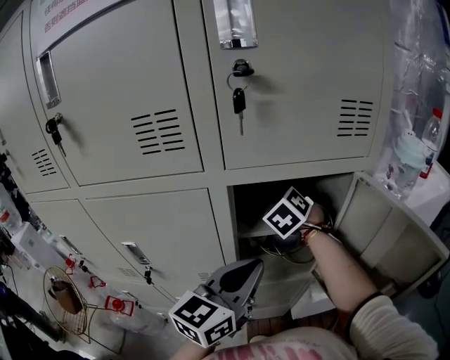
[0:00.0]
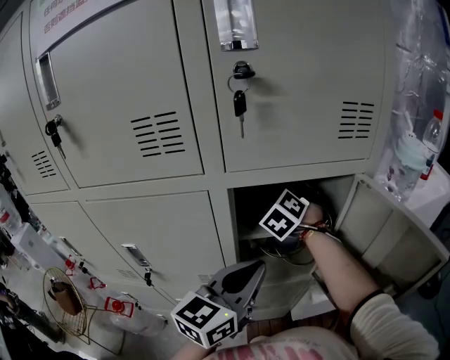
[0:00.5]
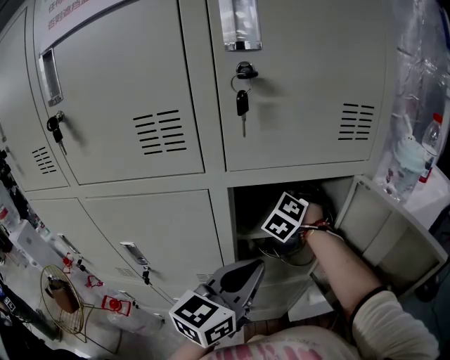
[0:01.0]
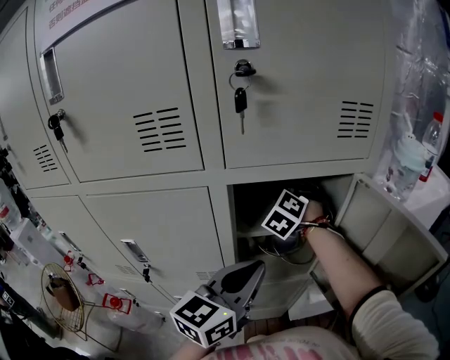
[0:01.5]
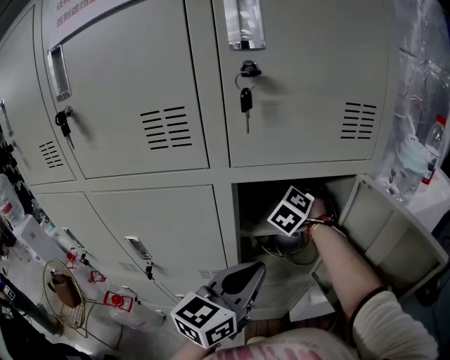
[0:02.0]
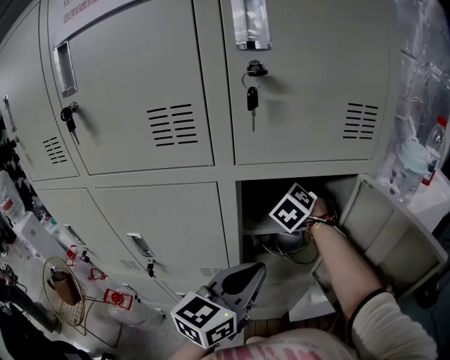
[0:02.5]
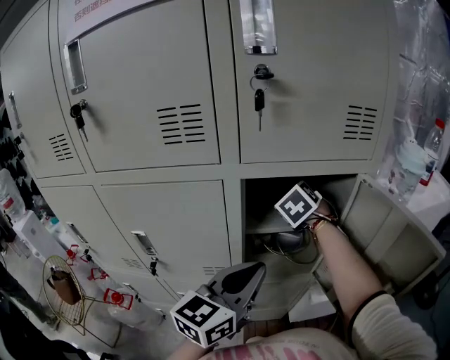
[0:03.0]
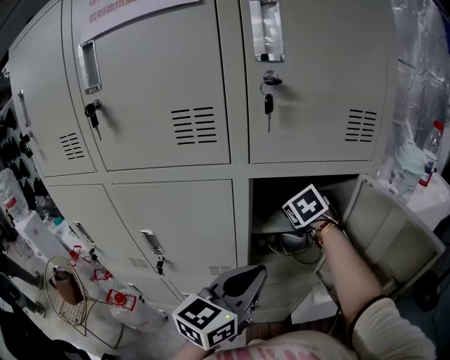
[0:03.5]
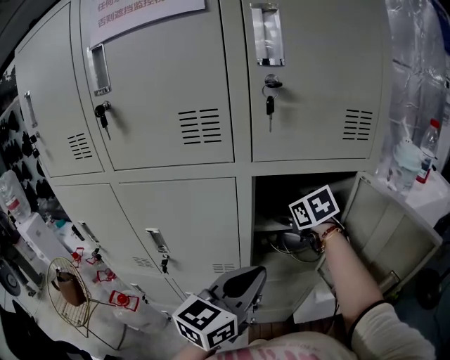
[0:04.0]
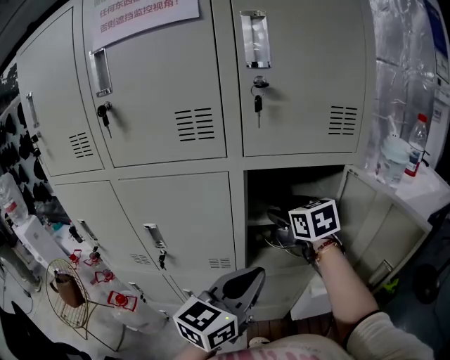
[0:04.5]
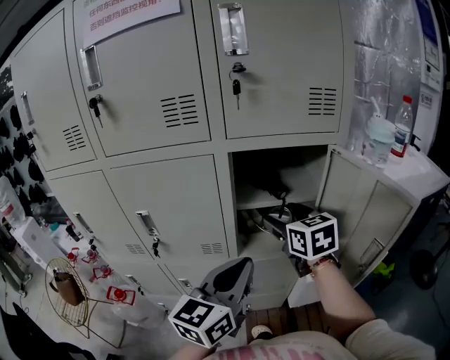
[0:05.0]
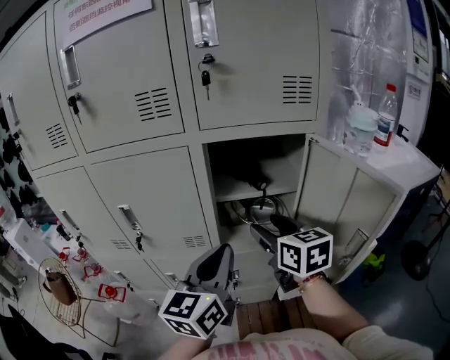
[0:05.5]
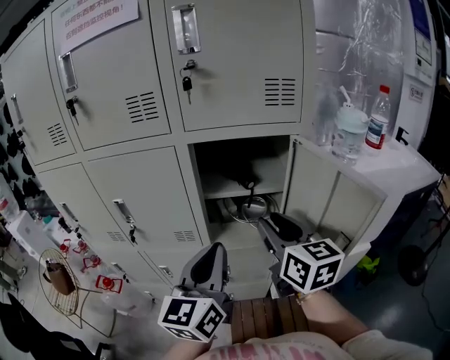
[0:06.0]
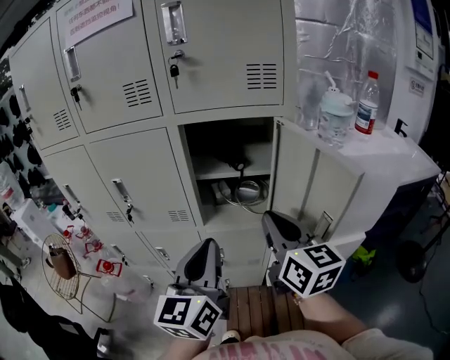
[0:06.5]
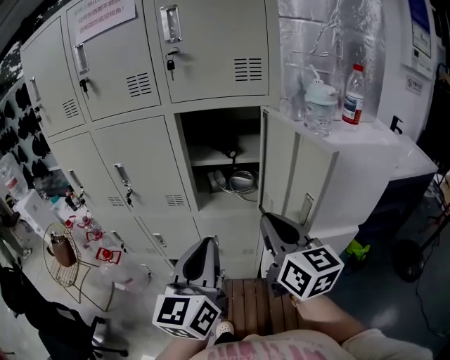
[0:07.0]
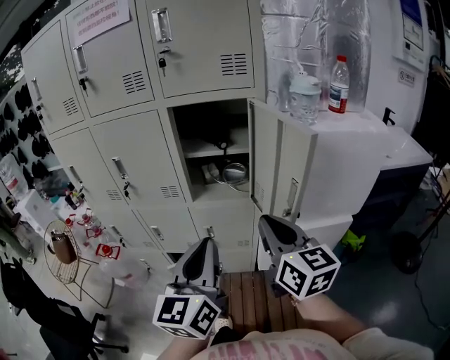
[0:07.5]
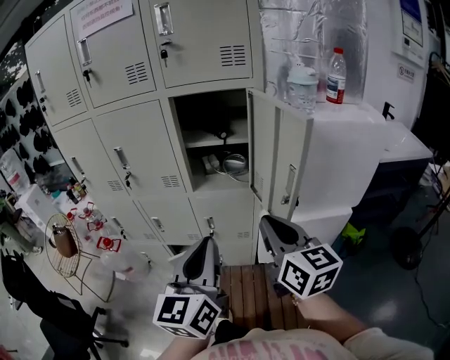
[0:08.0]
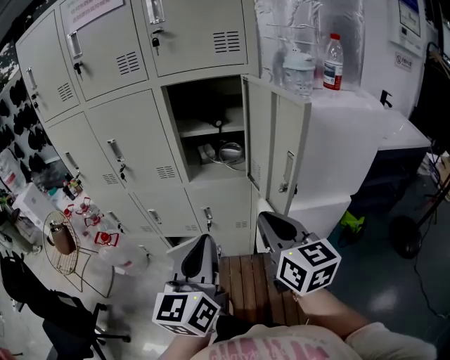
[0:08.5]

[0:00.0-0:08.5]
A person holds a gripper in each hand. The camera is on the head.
0:00.0 to 0:02.0: The grippers make only small movements.
0:02.0 to 0:04.0: The right gripper moves backward, some 10 cm, rotates around the line of its fingers by roughly 40 degrees, clockwise from behind, and opens. Meanwhile the left gripper is displaced backward by roughly 5 cm.
0:04.0 to 0:06.5: The right gripper goes approximately 30 cm backward, angles its fingers upward, by roughly 40 degrees, and closes; the left gripper moves backward and to the right, about 15 cm, and turns by some 30 degrees.
0:06.5 to 0:08.5: The left gripper travels backward by roughly 15 cm; the right gripper moves backward and downward, roughly 15 cm.

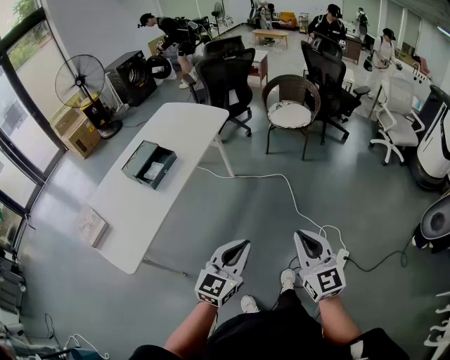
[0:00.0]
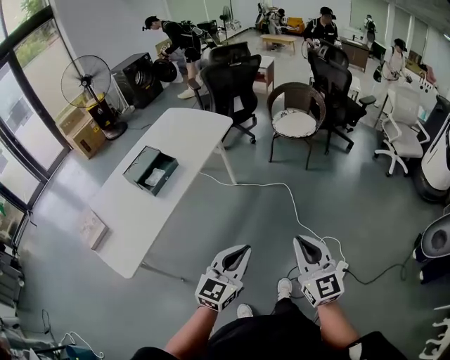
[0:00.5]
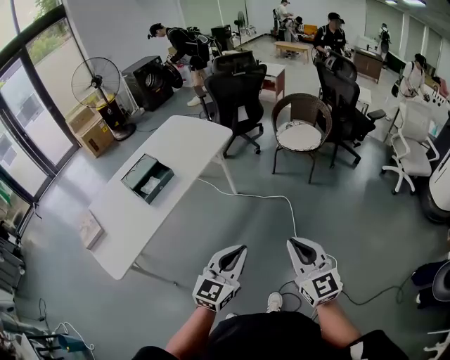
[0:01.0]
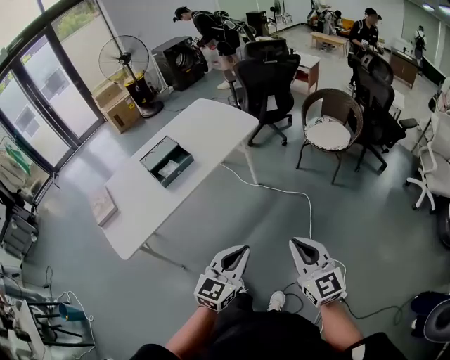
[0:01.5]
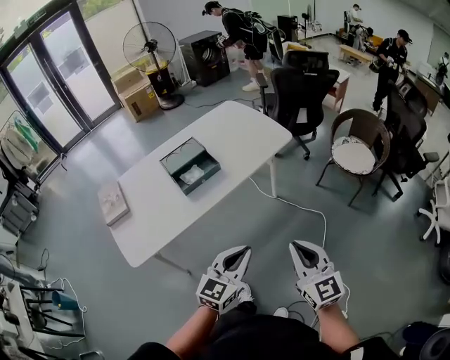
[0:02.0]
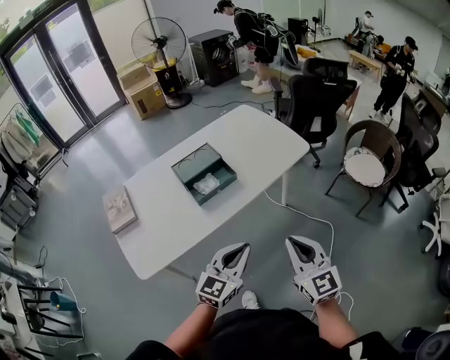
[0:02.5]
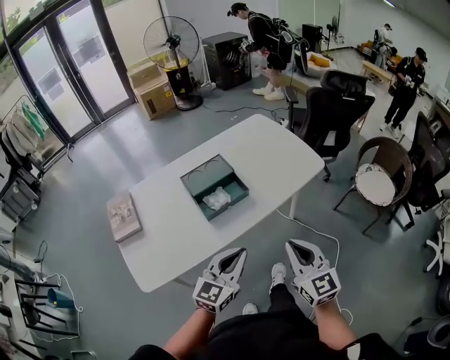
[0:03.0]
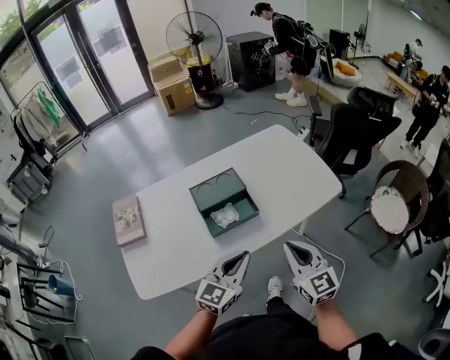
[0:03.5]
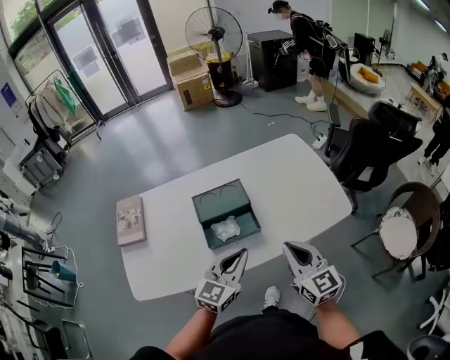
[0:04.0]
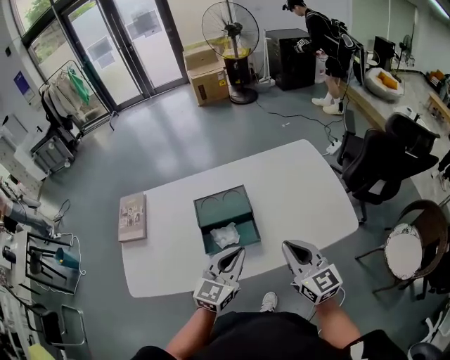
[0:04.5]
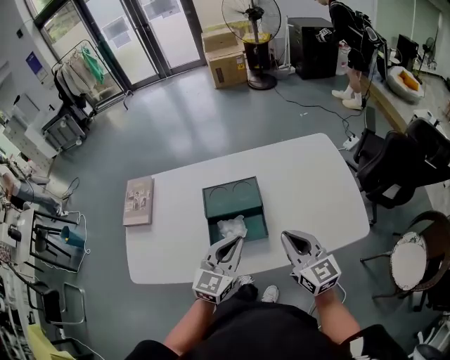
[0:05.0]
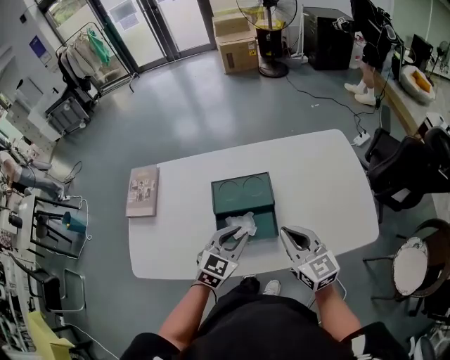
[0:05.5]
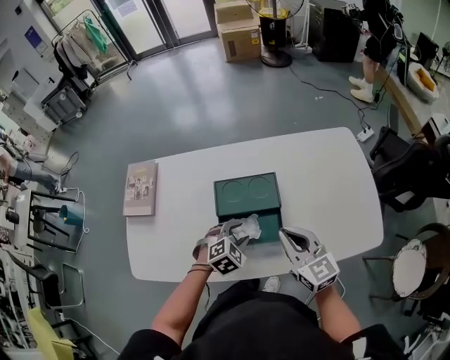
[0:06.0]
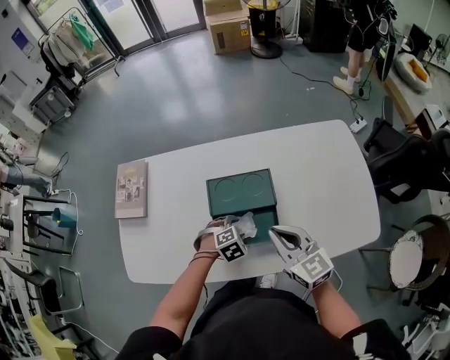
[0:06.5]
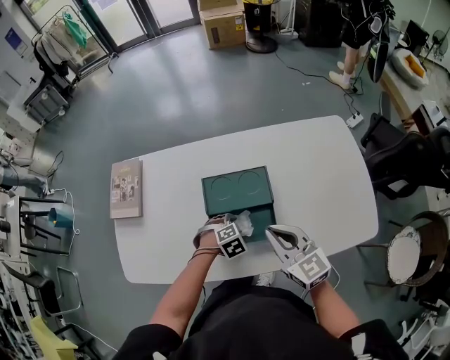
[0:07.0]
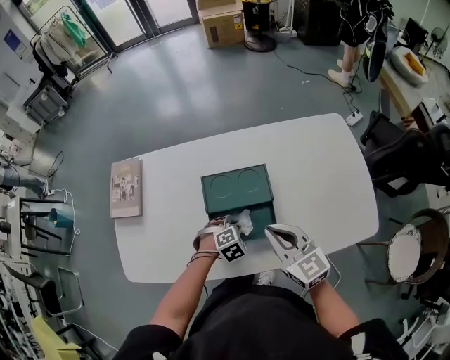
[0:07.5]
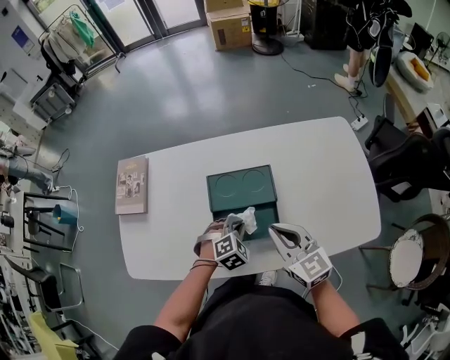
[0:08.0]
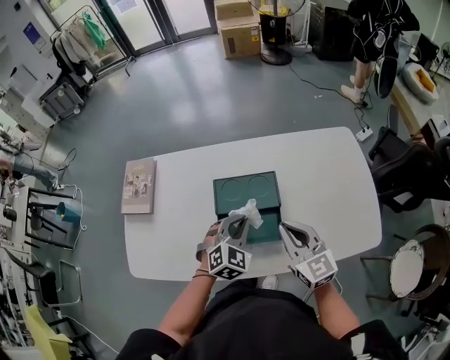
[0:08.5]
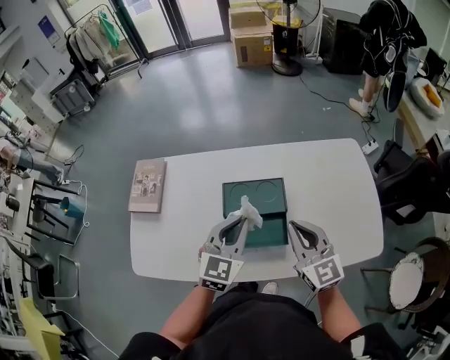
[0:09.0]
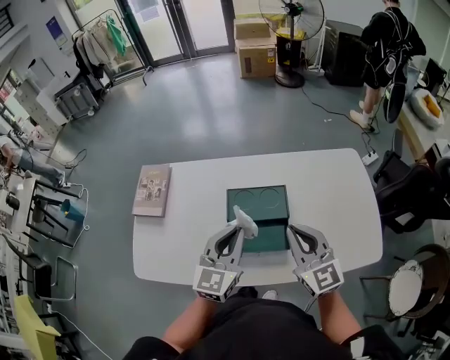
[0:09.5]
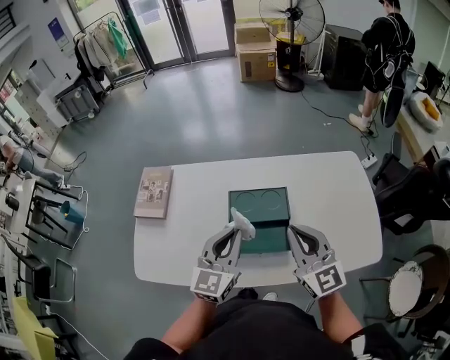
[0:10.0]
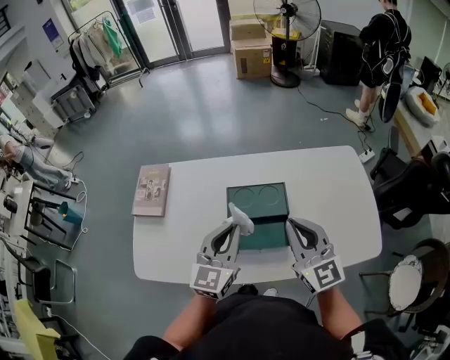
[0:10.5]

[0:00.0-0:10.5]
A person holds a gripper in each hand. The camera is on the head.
0:00.0 to 0:02.0: The right gripper shifts by about 25 cm, and turns by about 30 degrees, while the left gripper ends up about 20 cm from where it was, and swivels some 20 degrees.
0:02.0 to 0:04.0: Both grippers move forward, approximately 40 cm. The left gripper turns by about 20 degrees; the right gripper rotates roughly 30 degrees.
0:04.0 to 0:06.5: The right gripper goes some 20 cm forward, to the left and downward, and swivels some 20 degrees, while the left gripper travels downward and forward by approximately 30 cm, tips its fingers downward by approximately 60 degrees, and opens.
0:06.5 to 0:08.5: The left gripper heads upward, covering roughly 15 cm, tips its fingers upward by roughly 30 degrees, and closes up.
0:08.5 to 0:10.5: The left gripper travels upward and to the left by approximately 15 cm, and points its fingers some 30 degrees further upward. Meanwhile the right gripper heads upward, covering about 10 cm.

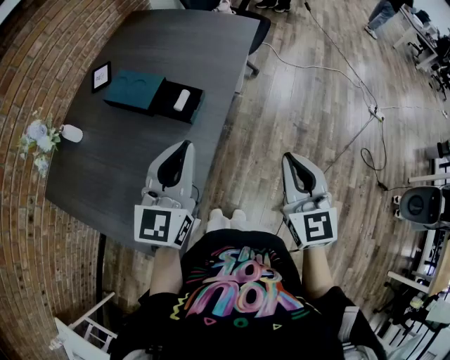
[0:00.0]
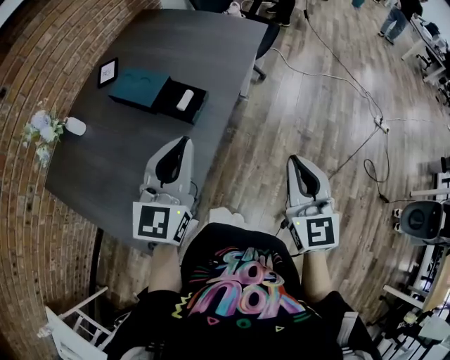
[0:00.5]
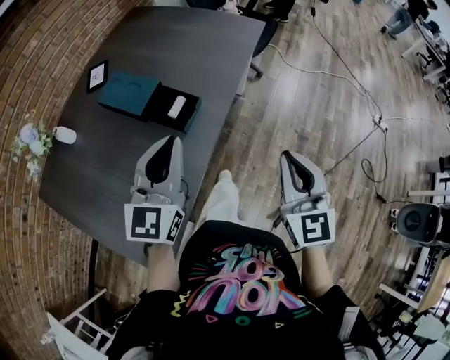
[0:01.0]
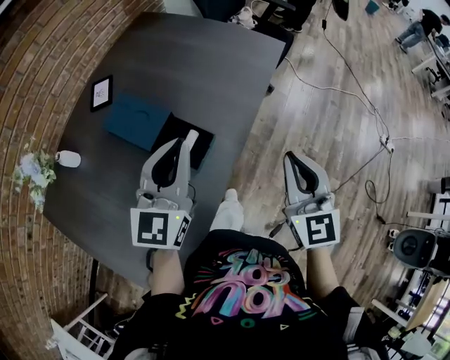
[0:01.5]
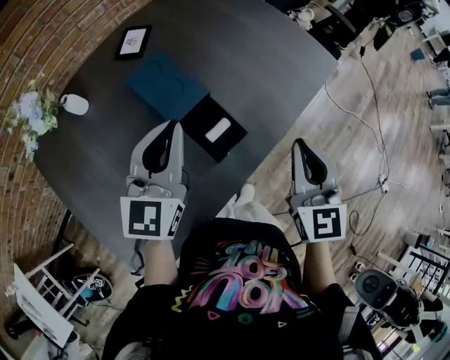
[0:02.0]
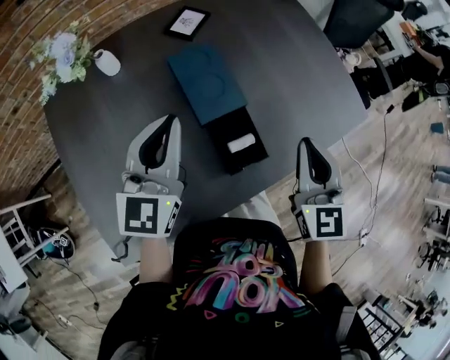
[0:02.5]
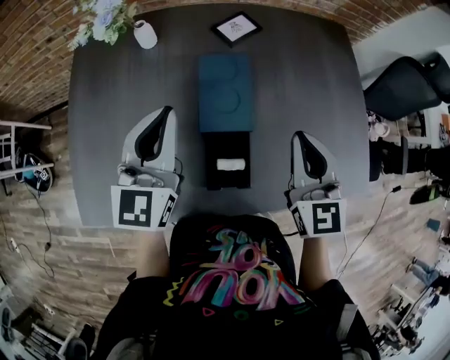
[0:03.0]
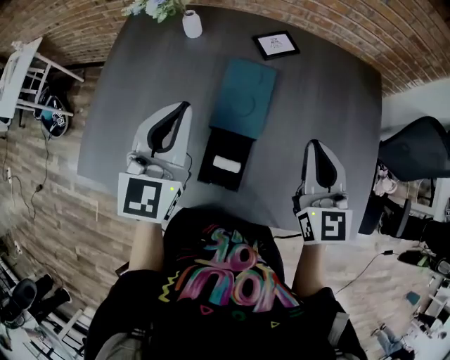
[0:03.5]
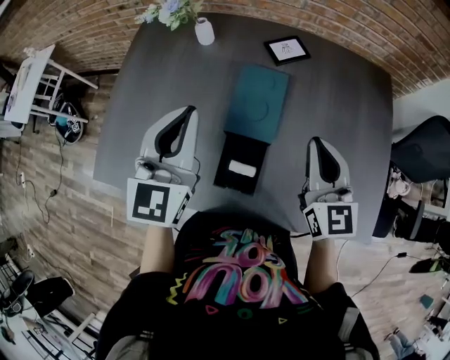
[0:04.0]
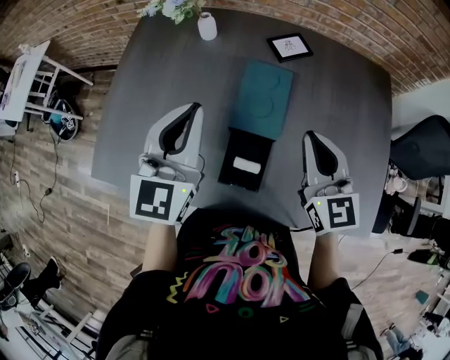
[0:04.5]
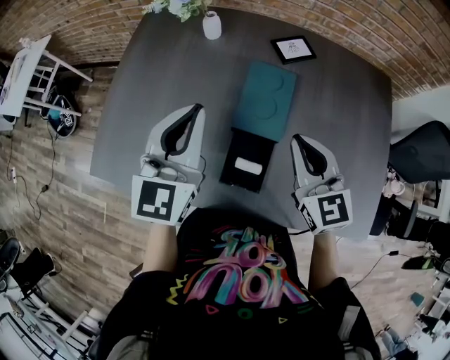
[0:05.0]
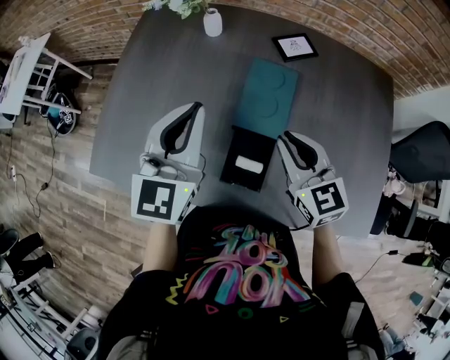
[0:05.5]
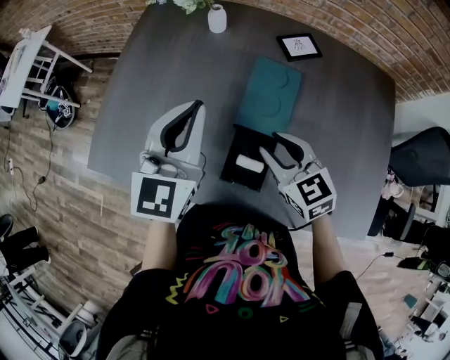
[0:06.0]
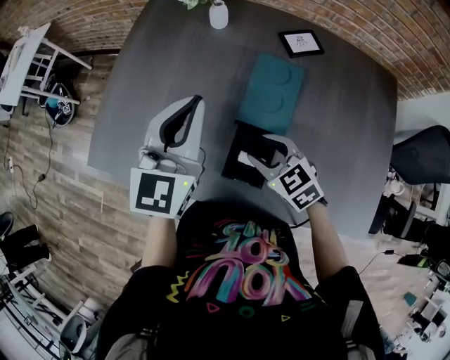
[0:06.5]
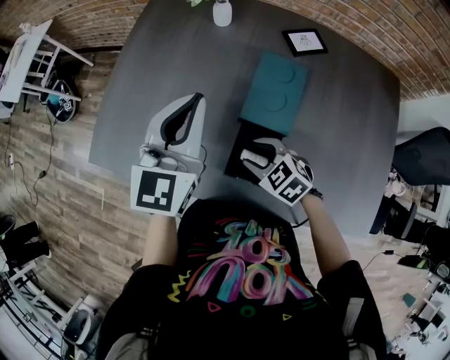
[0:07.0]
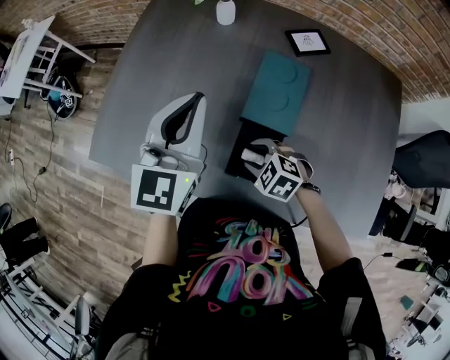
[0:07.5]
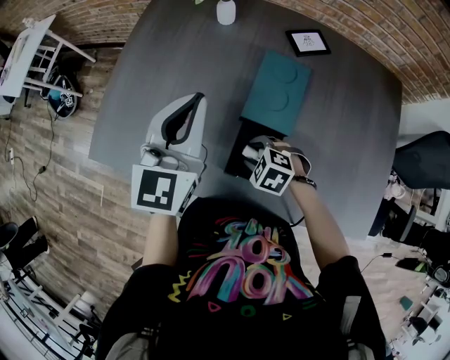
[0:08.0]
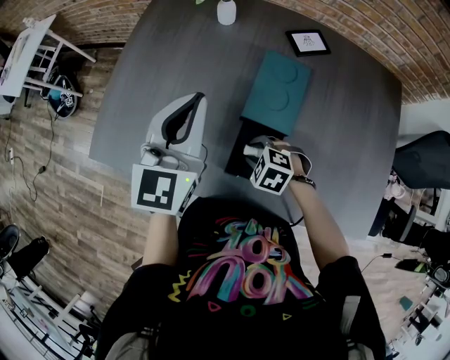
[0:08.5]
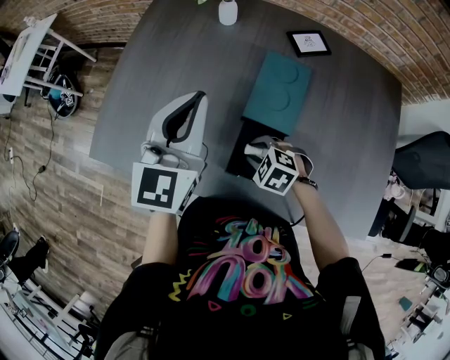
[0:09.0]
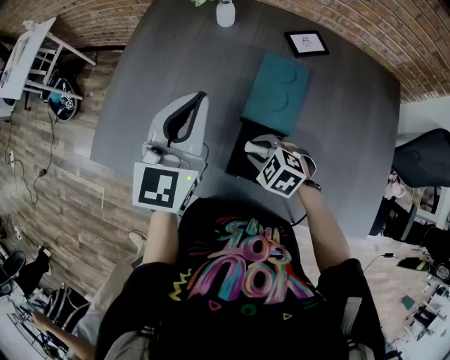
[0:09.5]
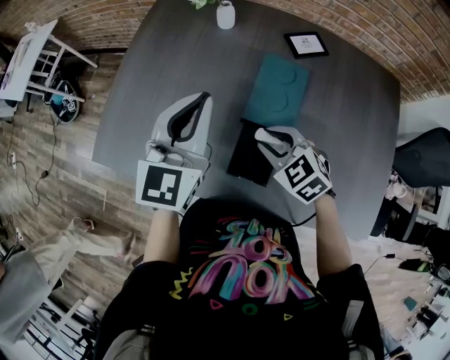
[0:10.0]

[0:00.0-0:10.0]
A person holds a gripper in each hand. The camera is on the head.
0:00.0 to 0:02.0: The left gripper is displaced forward and to the left by roughly 25 cm, and swivels roughly 30 degrees. Meanwhile the right gripper goes some 30 cm forward, and changes its angle by approximately 20 degrees.
0:02.0 to 0:04.0: The left gripper shifts by about 5 cm, and swivels roughly 60 degrees. The right gripper changes place by about 25 cm, and turns by some 60 degrees.
0:04.0 to 0:06.0: The right gripper shifts roughly 15 cm to the left and downward, swivels roughly 40 degrees, and opens its fingers.
0:06.0 to 0:08.0: The right gripper goes approximately 15 cm downward, and tips its fingers downward by some 40 degrees.
0:08.0 to 0:10.0: The right gripper heads upward, covering roughly 10 cm, and turns by approximately 30 degrees.
